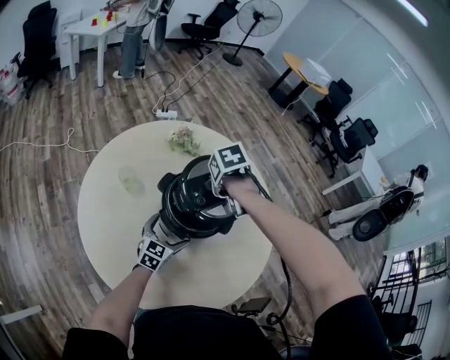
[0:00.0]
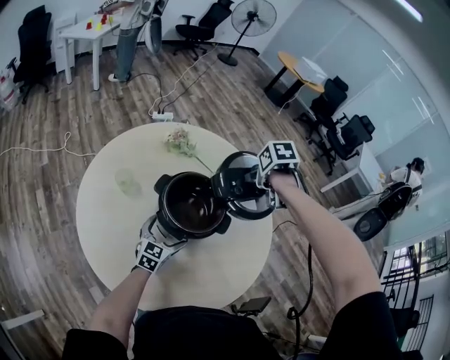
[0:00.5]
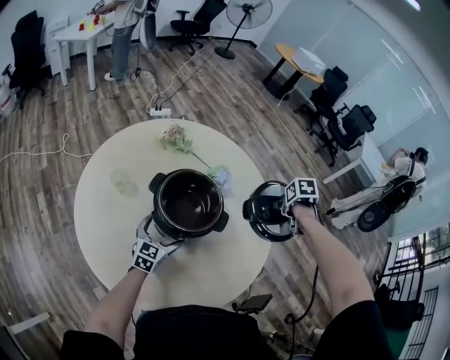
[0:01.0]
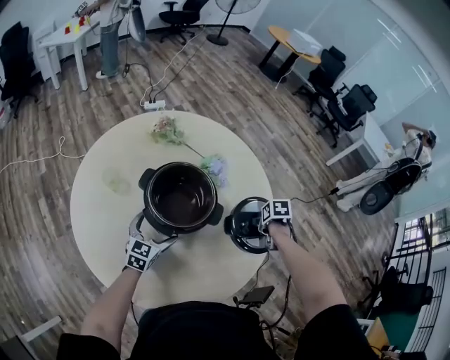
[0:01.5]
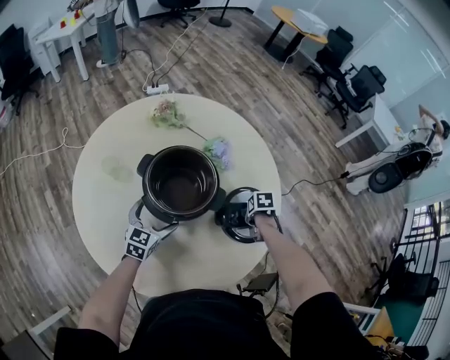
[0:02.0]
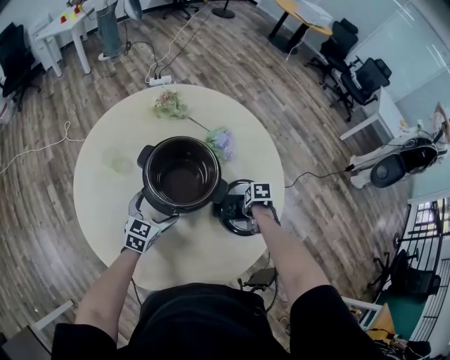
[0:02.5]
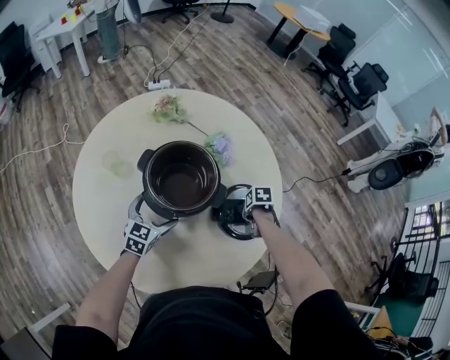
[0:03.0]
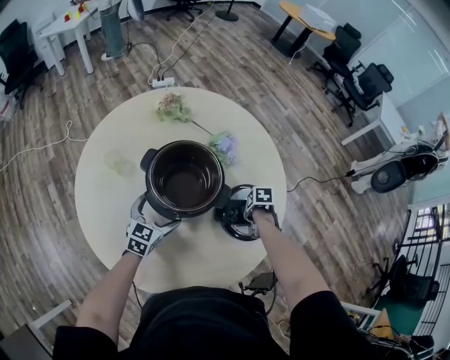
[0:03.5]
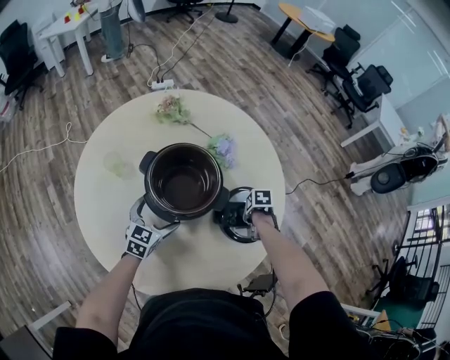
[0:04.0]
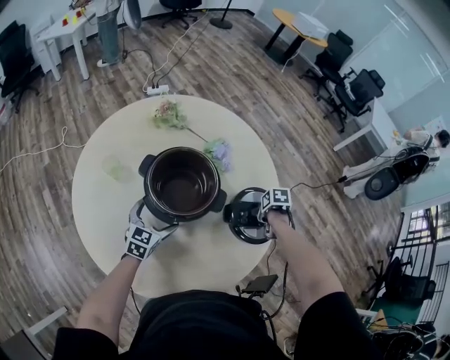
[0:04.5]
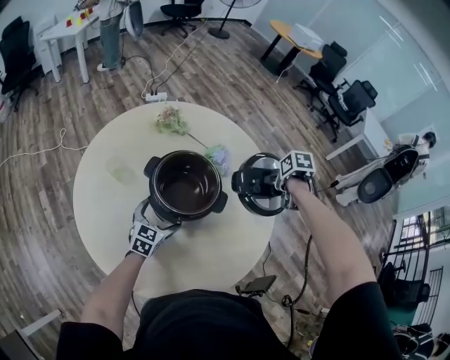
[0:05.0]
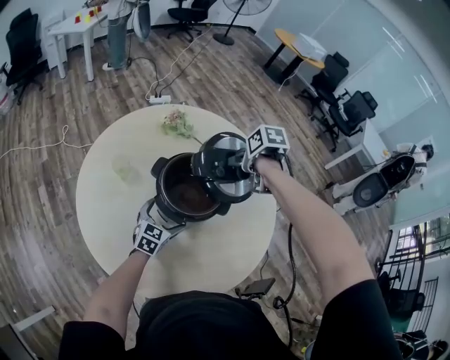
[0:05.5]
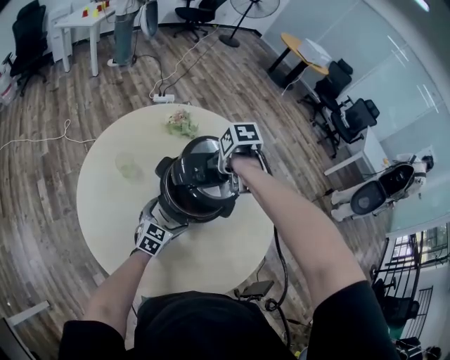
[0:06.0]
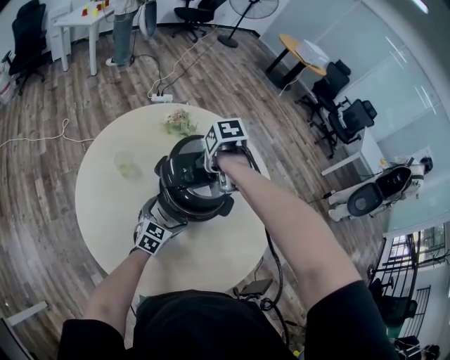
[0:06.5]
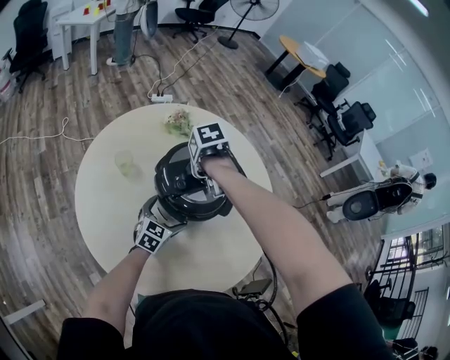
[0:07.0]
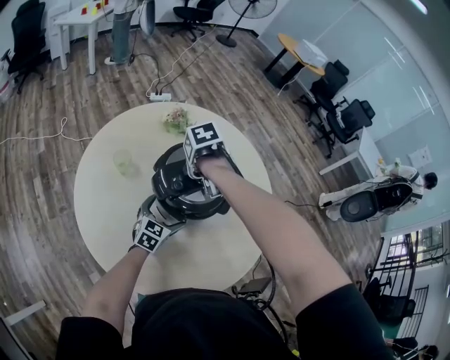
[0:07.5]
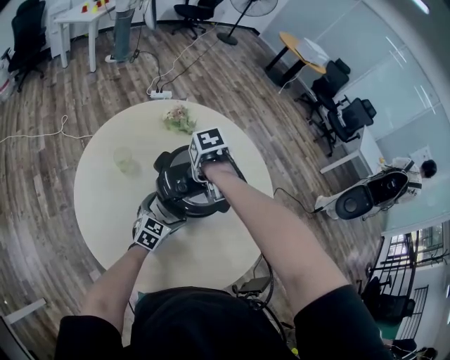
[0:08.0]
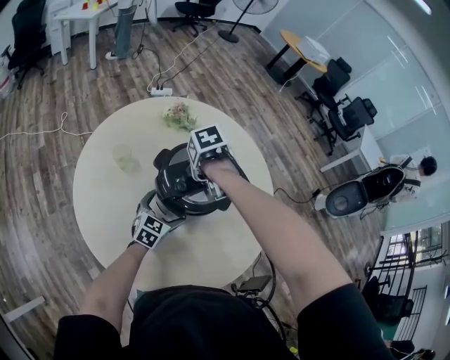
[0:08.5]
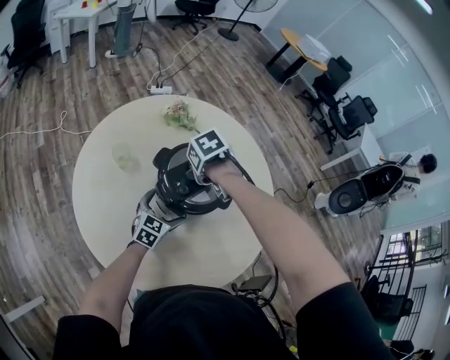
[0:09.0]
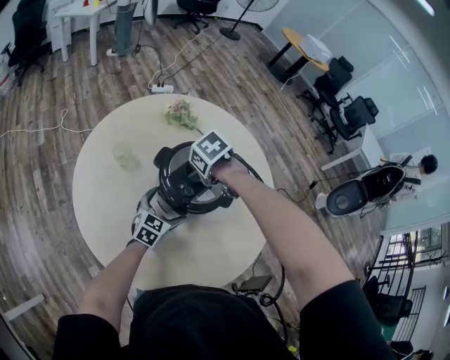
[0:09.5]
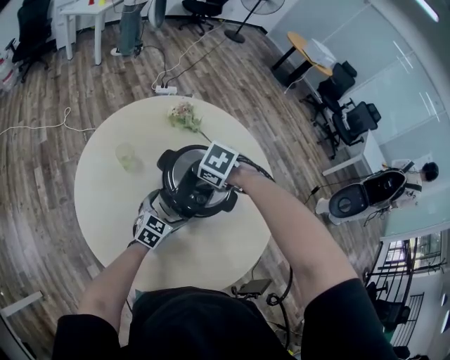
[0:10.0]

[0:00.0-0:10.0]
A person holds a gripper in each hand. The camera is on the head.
0:00.0 to 0:02.0: The right gripper ends up some 40 cm from where it was, and rotates about 30 degrees.
0:02.0 to 0:04.0: The grippers stay close to where they were, moving slightly.
0:04.0 to 0:06.0: The right gripper changes place by about 35 cm, and rotates some 20 degrees.
0:06.0 to 0:08.0: The right gripper changes place by some 5 cm.
0:08.0 to 0:10.0: The right gripper rotates around the line of its fingers by roughly 50 degrees, counterclockwise from behind.

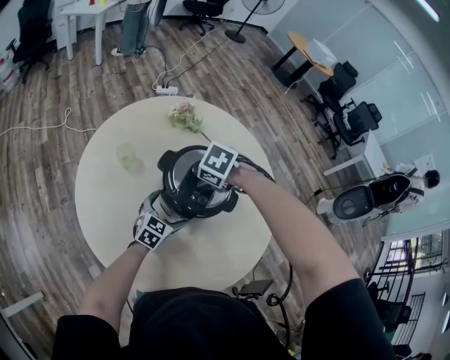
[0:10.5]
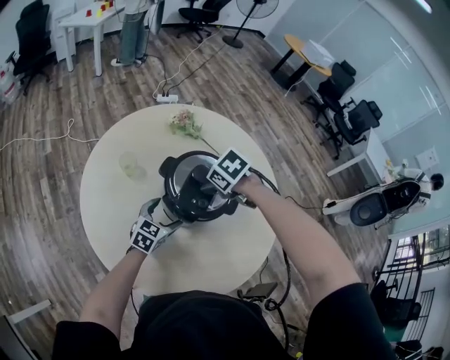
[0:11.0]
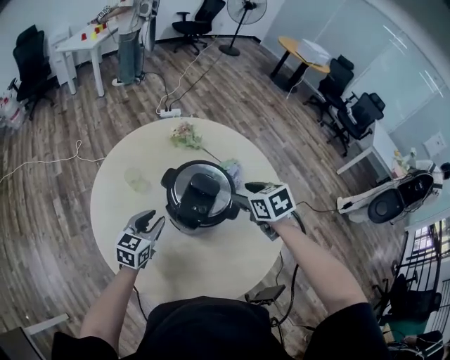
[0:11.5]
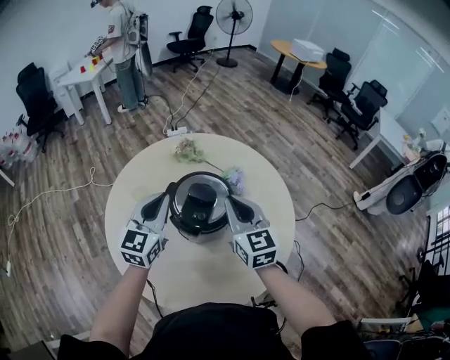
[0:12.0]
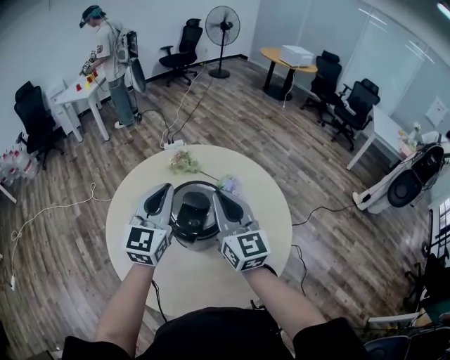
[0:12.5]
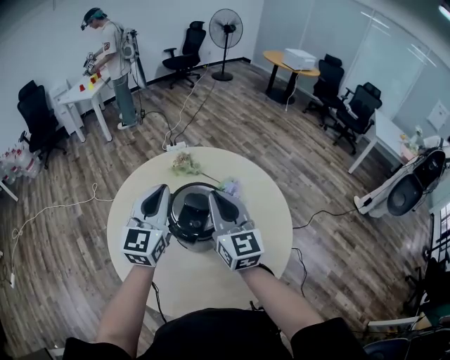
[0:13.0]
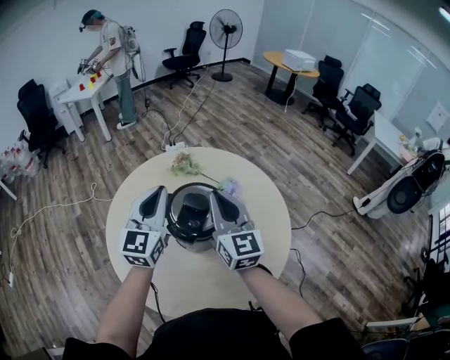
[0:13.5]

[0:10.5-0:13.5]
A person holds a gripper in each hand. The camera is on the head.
0:10.5 to 0:12.0: The right gripper shifts some 15 cm upward, points its fingers about 80 degrees further upward, and closes up; the left gripper is displaced upward by some 30 cm, turns by about 30 degrees, and closes up.
0:12.0 to 0:13.5: The two grippers go about 5 cm upward.

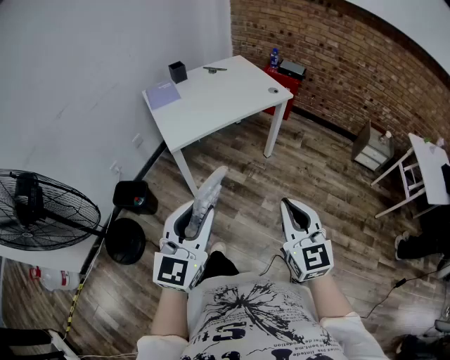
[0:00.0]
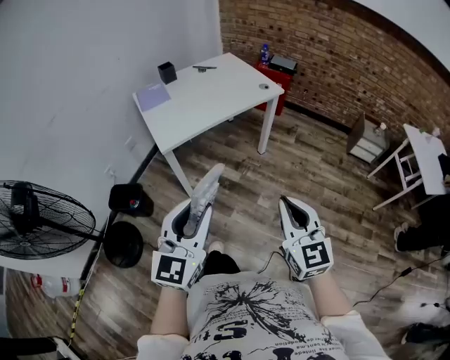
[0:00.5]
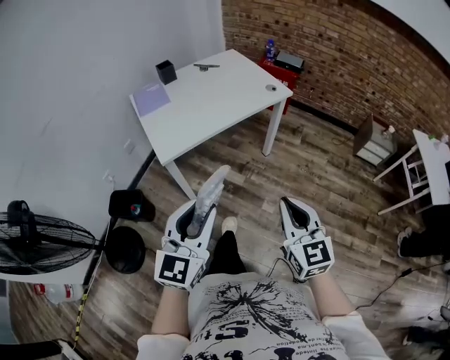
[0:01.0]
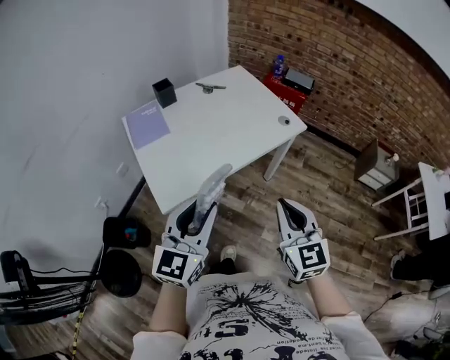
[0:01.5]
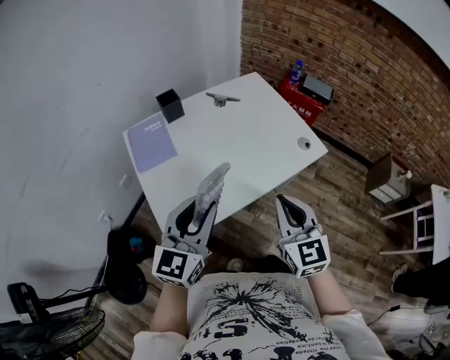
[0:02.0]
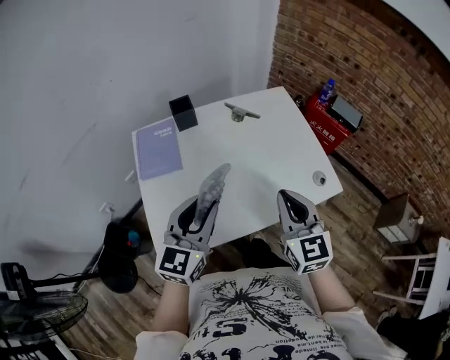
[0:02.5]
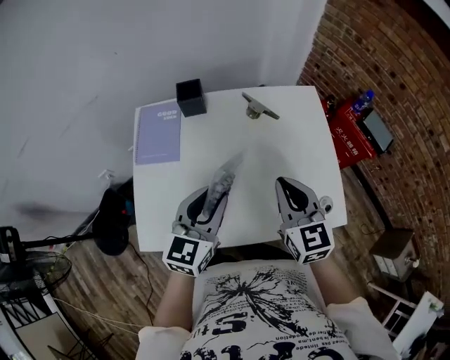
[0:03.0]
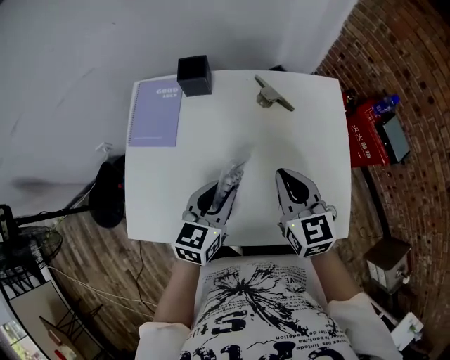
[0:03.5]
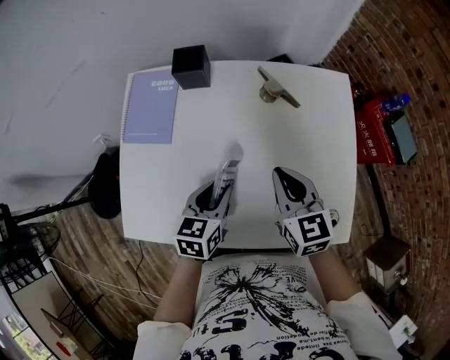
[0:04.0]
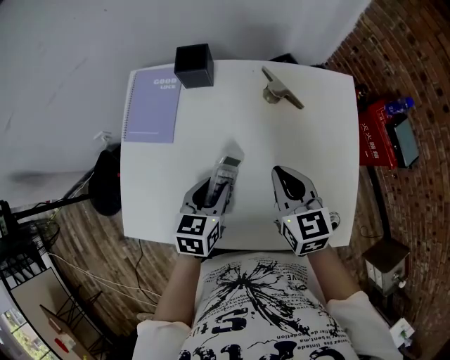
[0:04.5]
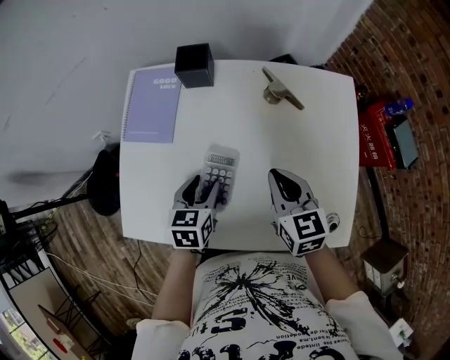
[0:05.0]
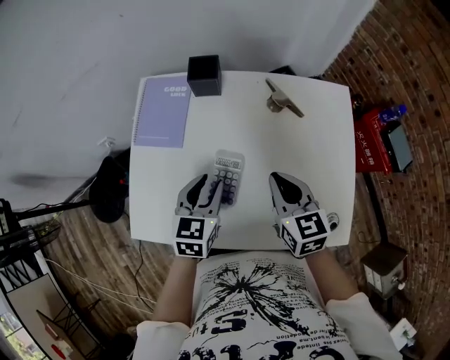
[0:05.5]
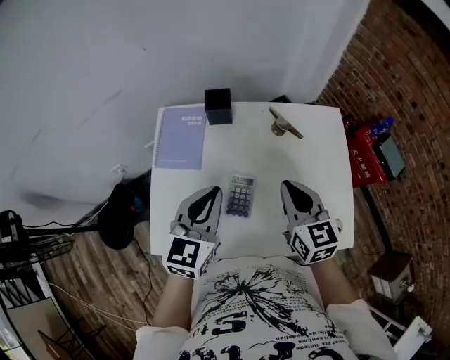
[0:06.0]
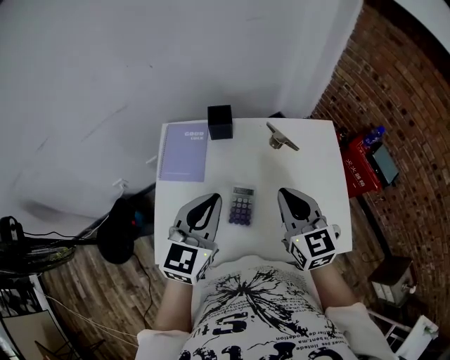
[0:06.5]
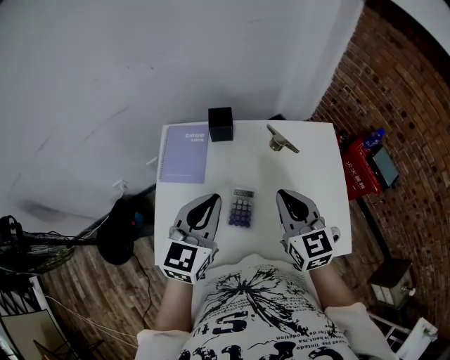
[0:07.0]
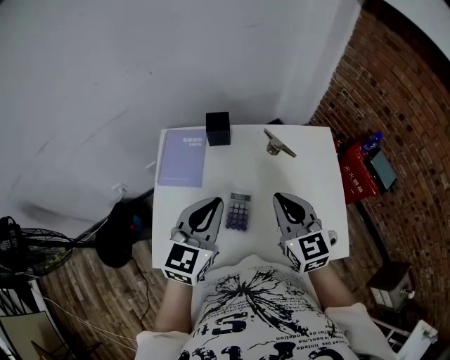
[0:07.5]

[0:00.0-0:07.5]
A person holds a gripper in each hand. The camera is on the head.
0:00.0 to 0:02.0: Both grippers are carried forward, about 60 cm.
0:02.0 to 0:04.0: The right gripper moves about 50 cm, and rotates roughly 40 degrees; the left gripper ends up about 40 cm from where it was, and tilts its fingers some 30 degrees downward.
0:04.0 to 0:05.5: The left gripper travels to the left and upward by some 10 cm.
0:05.5 to 0:07.5: The grippers both shift upward by about 20 cm. The left gripper swivels about 30 degrees, and closes.

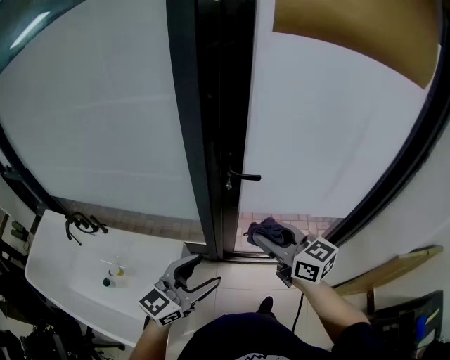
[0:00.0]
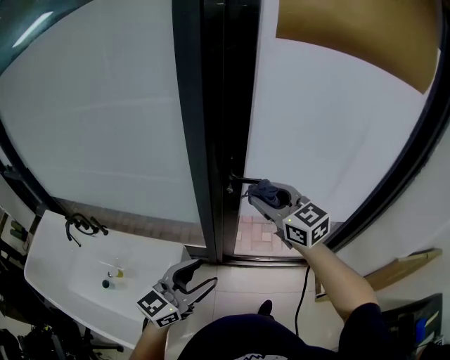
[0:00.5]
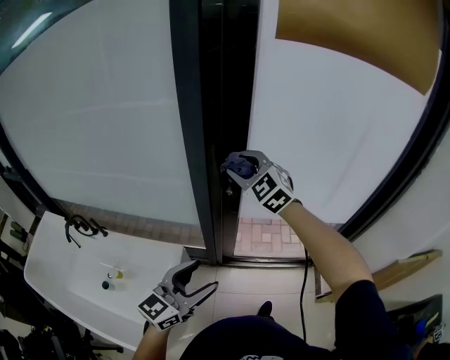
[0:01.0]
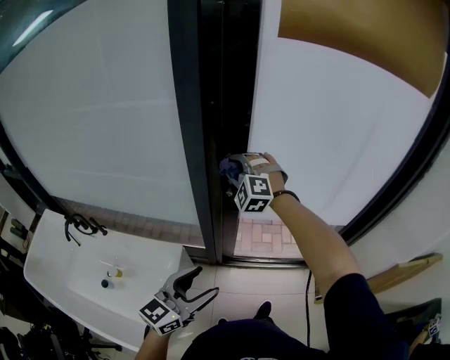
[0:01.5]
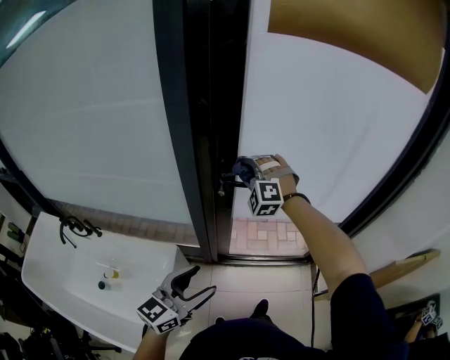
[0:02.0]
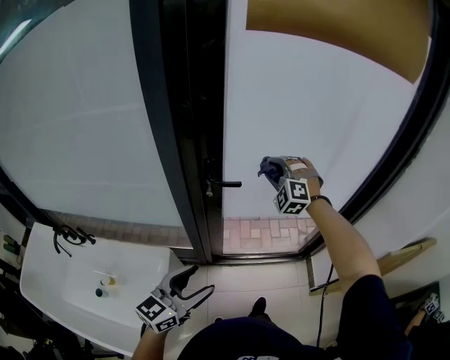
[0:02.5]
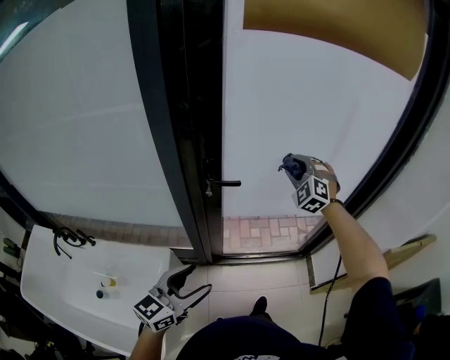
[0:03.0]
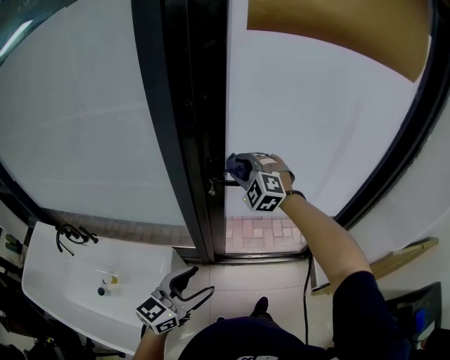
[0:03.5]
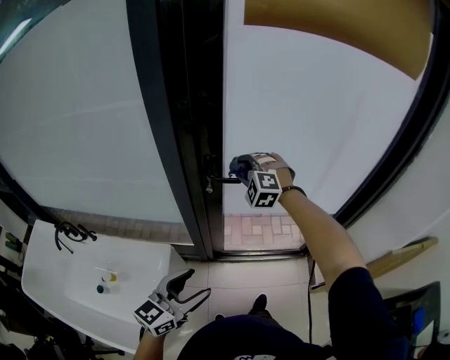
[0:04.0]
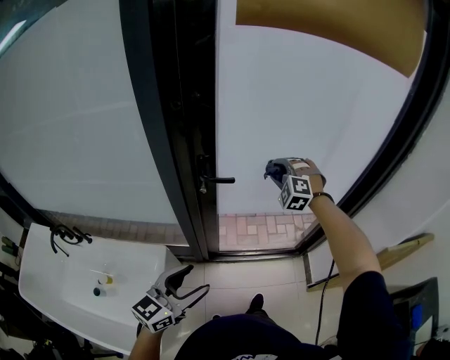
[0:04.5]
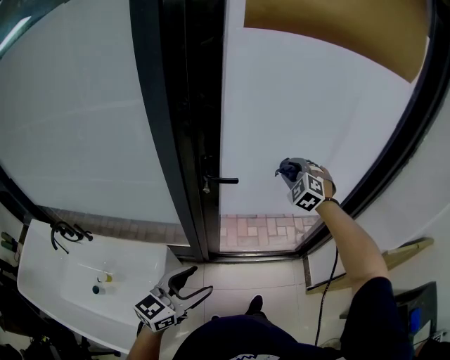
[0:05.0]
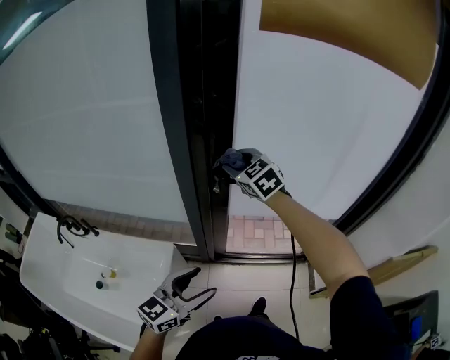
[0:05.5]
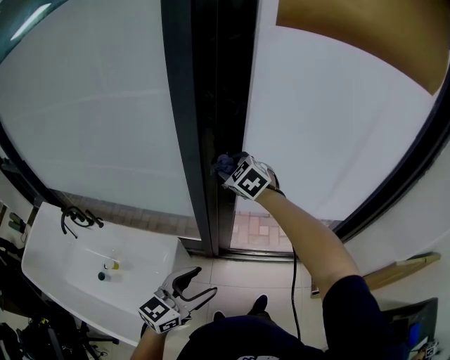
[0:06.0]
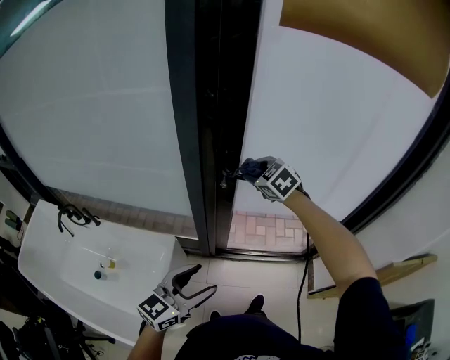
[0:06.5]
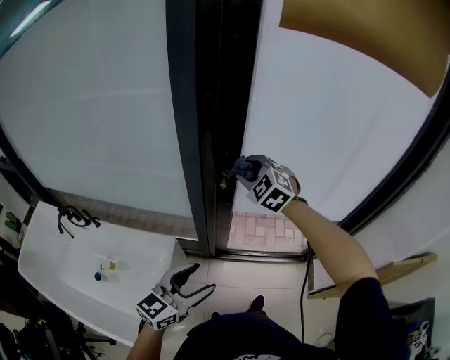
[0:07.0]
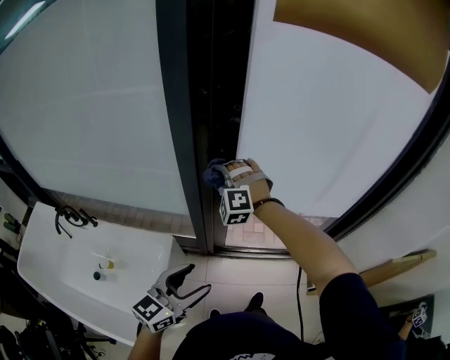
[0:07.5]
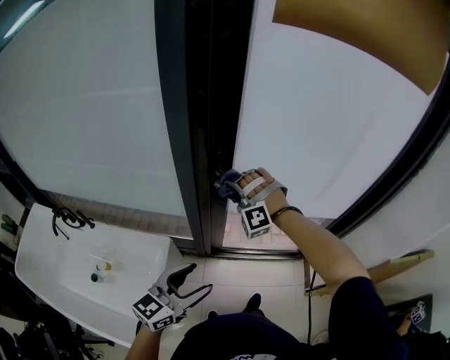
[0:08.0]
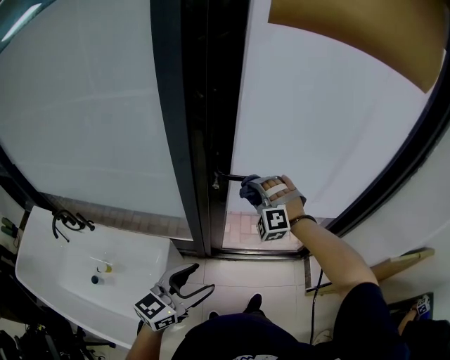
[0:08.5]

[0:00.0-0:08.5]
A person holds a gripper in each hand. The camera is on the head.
0:00.0 to 0:02.0: The right gripper shifts about 25 cm forward, and rolls counterclockwise, seen from behind, by about 90 degrees.
0:02.0 to 0:04.0: The right gripper moves some 20 cm to the right and comes back.
0:04.0 to 0:06.5: The right gripper swings left and right, some 25 cm each way, with 2 reversals, and twists roughly 40 degrees clockwise, seen from behind.
0:06.5 to 0:08.5: The right gripper is displaced downward by some 5 cm, travels to the left and back again, approximately 10 cm each way, and twists about 50 degrees counterclockwise, seen from behind.
